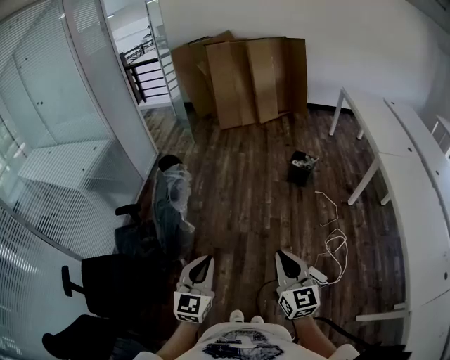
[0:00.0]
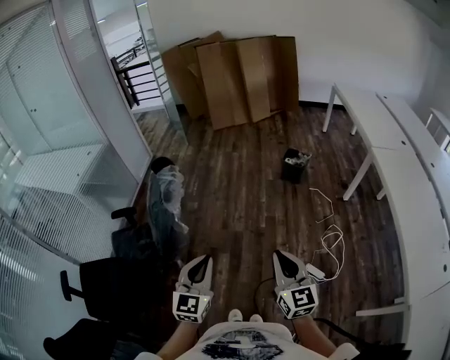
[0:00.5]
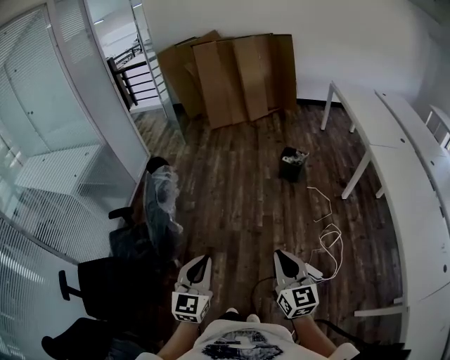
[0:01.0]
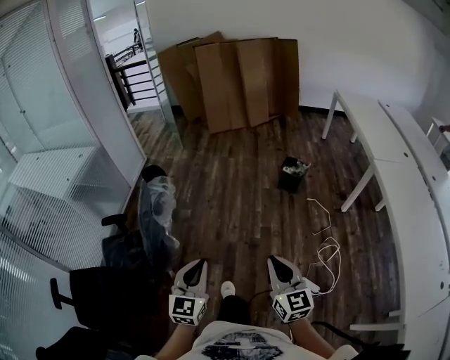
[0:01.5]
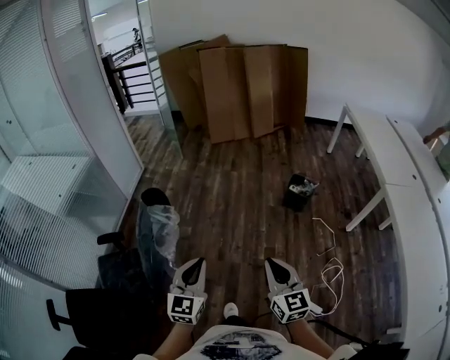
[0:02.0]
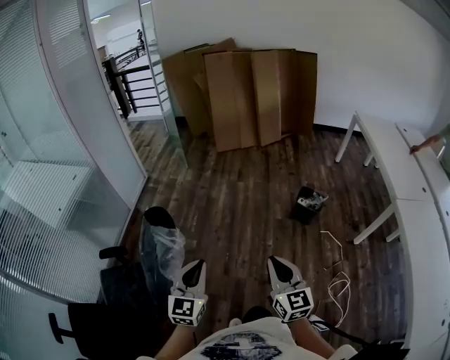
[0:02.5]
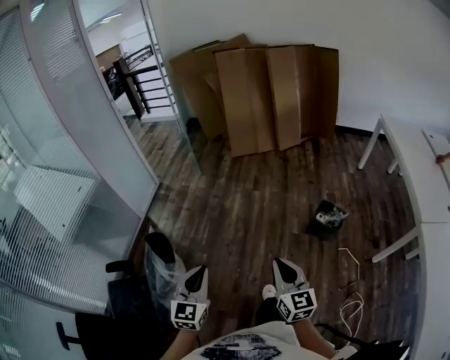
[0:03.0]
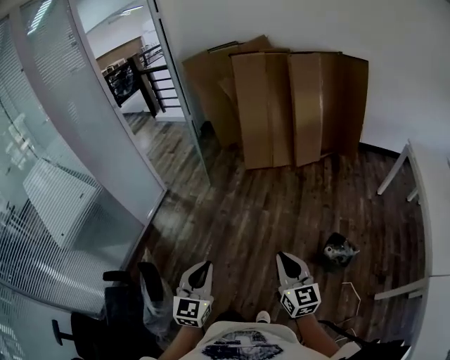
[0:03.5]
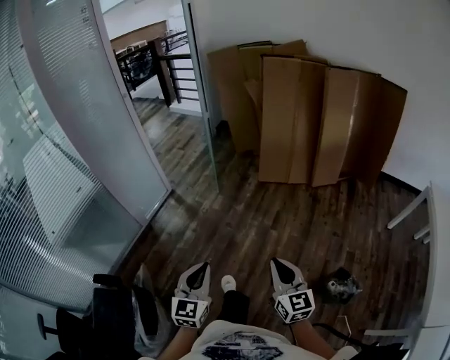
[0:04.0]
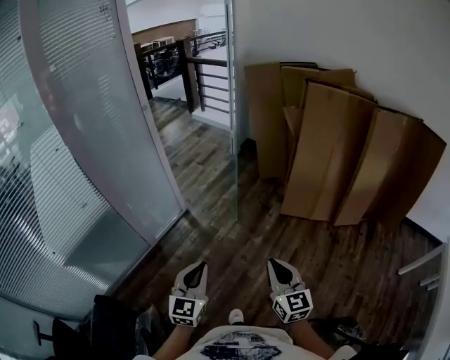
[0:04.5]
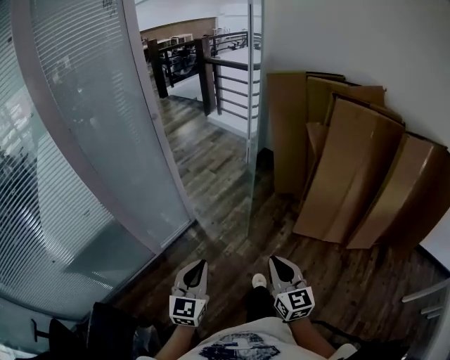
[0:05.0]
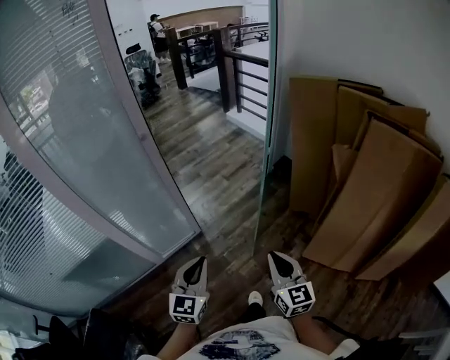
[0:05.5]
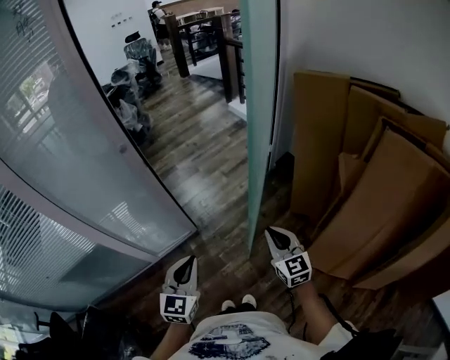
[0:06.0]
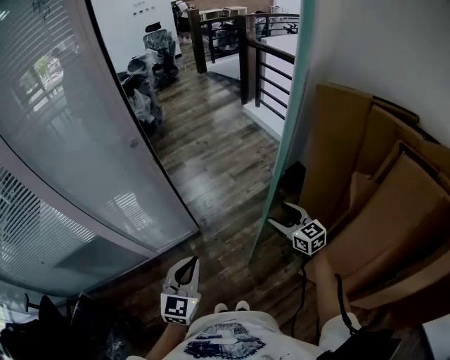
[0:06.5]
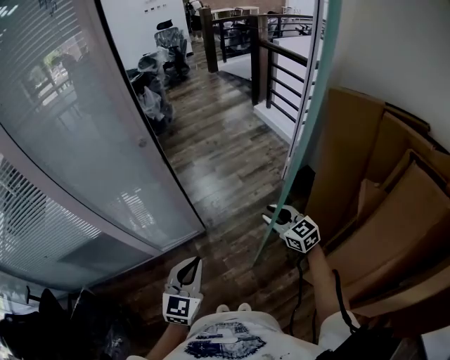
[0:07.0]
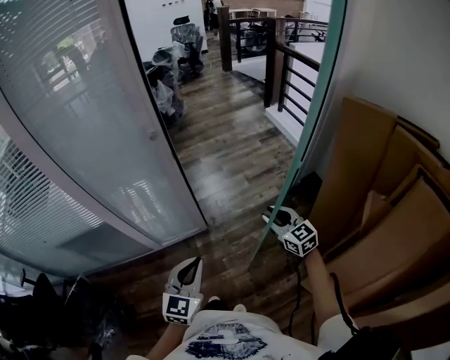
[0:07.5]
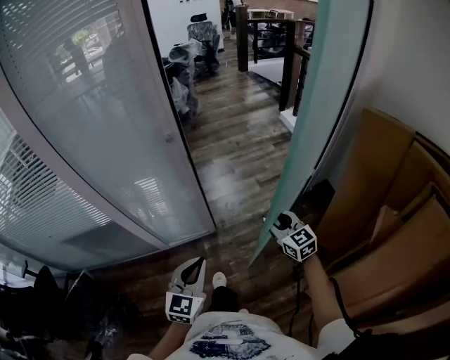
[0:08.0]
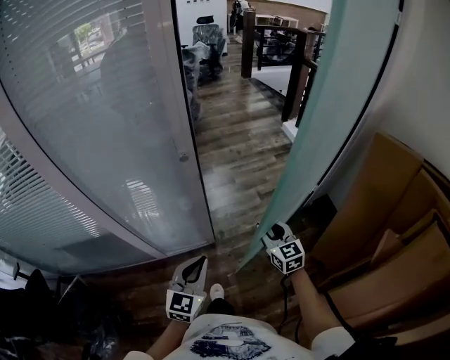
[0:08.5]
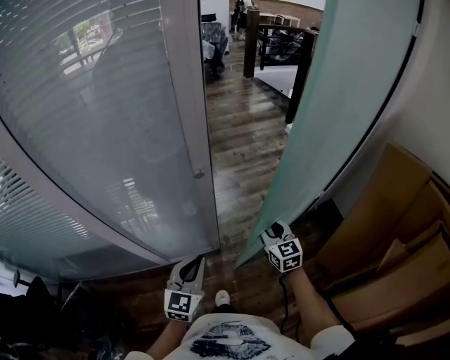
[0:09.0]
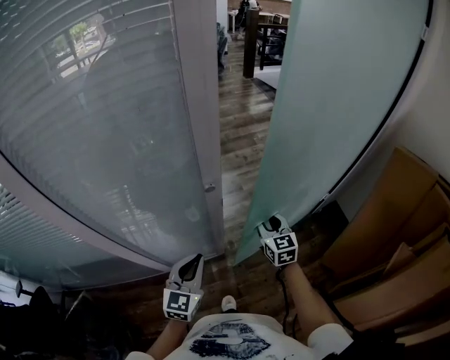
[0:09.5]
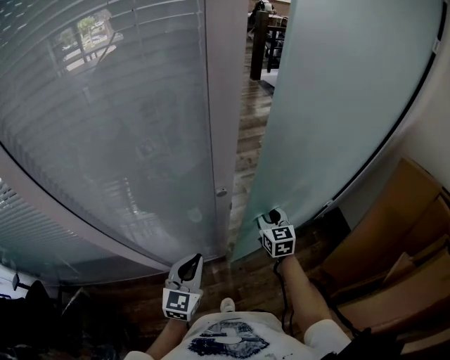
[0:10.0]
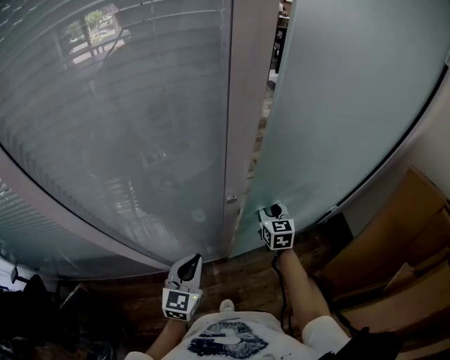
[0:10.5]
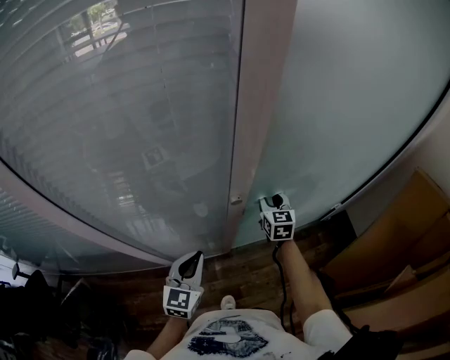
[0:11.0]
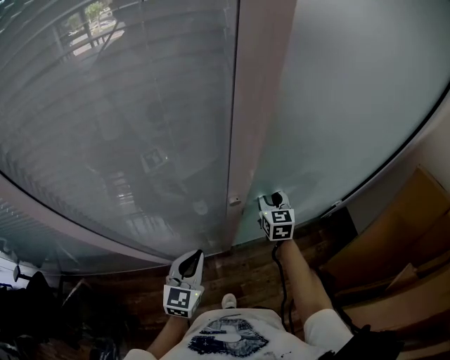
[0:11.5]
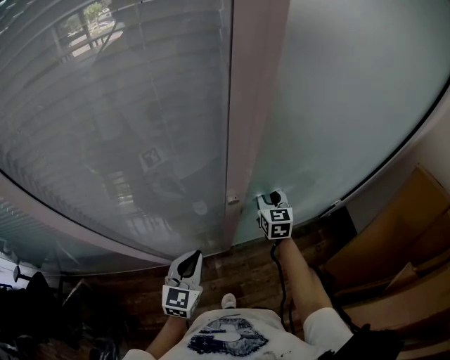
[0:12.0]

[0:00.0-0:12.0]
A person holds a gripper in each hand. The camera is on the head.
0:00.0 to 0:02.0: Both grippers move forward, approximately 25 cm.
0:02.0 to 0:04.0: The pair of grippers is taken forward, some 60 cm. The left gripper turns by roughly 20 degrees.
0:04.0 to 0:06.0: Both grippers are carried some 80 cm. The right gripper swivels approximately 30 degrees. The left gripper swivels some 30 degrees.
0:06.0 to 0:08.0: The right gripper goes approximately 20 cm forward, swivels about 30 degrees, and opens up, while the left gripper moves forward, roughly 5 cm.
0:08.0 to 0:10.0: The grippers both shift forward and to the left by about 25 cm.
0:10.0 to 0:12.0: The right gripper goes about 10 cm forward.

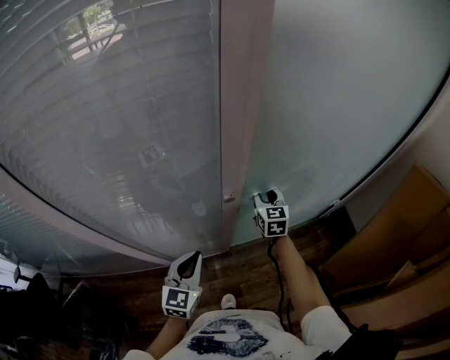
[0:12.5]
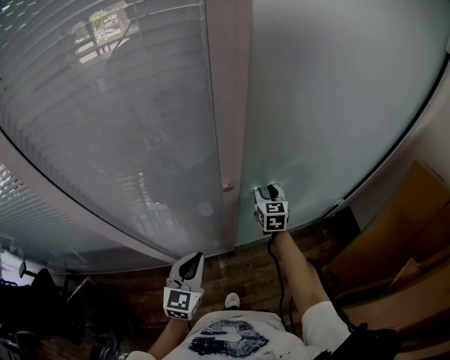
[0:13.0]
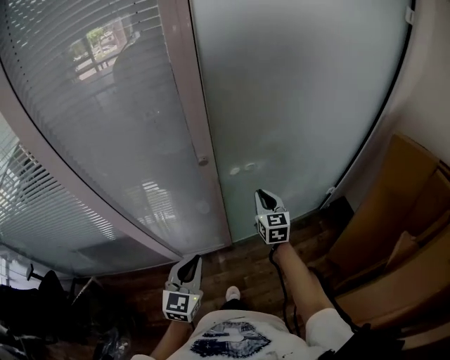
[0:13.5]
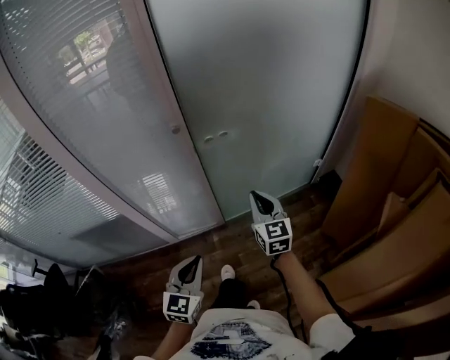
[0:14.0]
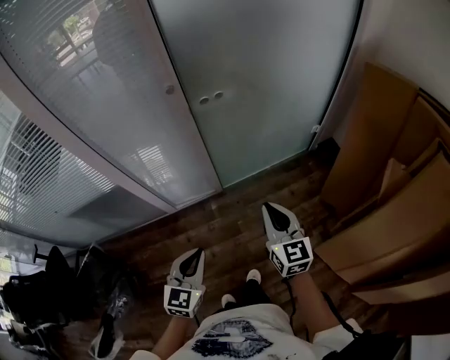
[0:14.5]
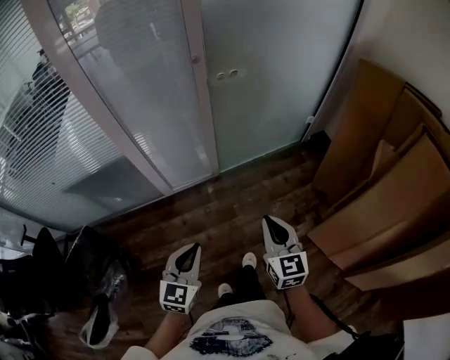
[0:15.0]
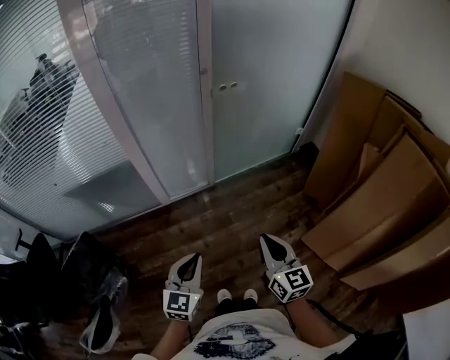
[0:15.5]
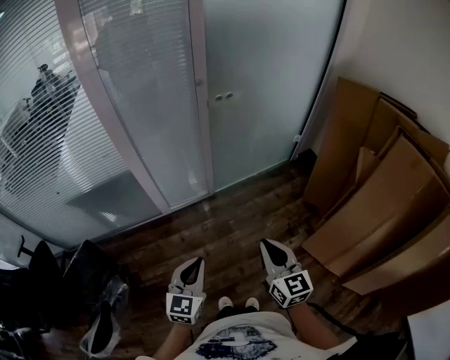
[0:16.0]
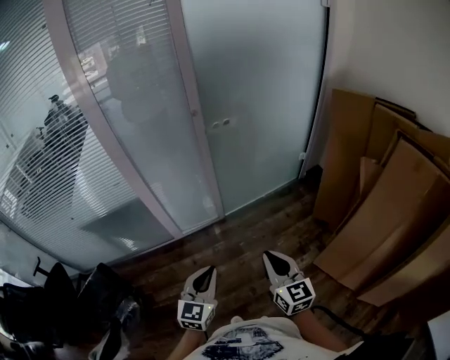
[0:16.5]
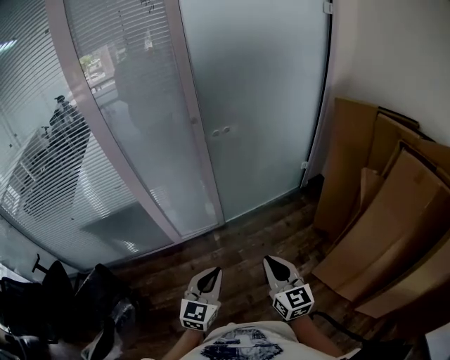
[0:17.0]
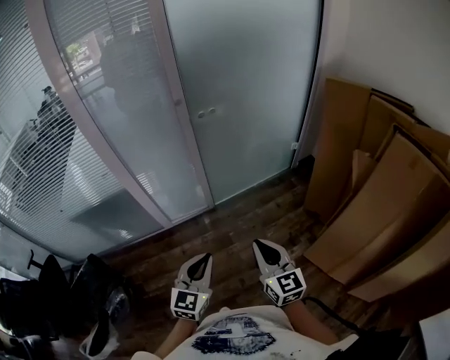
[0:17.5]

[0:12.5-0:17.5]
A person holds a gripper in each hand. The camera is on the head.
0:12.5 to 0:15.0: The pair of grippers is taken backward, some 60 cm. The right gripper closes its fingers.
0:15.0 to 0:17.5: The right gripper moves backward, roughly 5 cm. The left gripper heads to the right, covering approximately 10 cm.

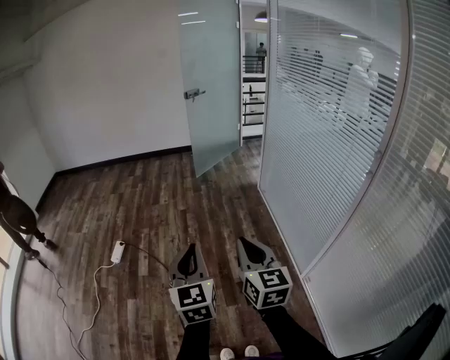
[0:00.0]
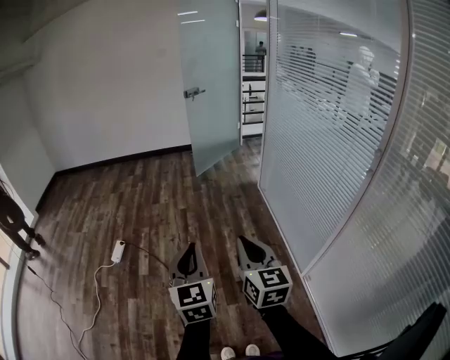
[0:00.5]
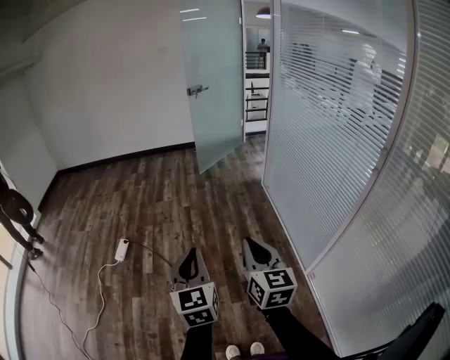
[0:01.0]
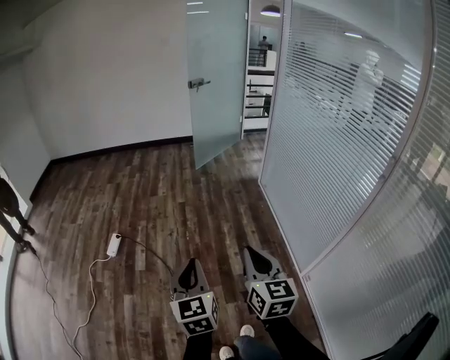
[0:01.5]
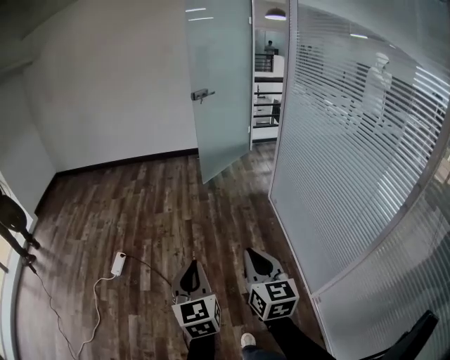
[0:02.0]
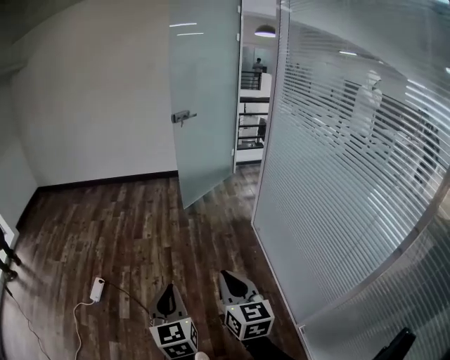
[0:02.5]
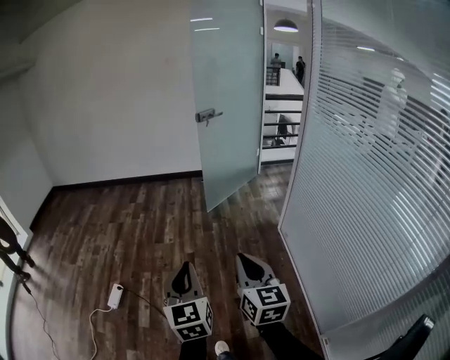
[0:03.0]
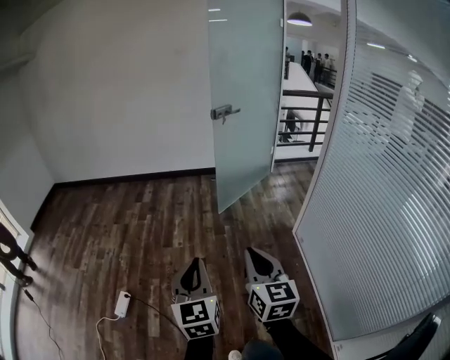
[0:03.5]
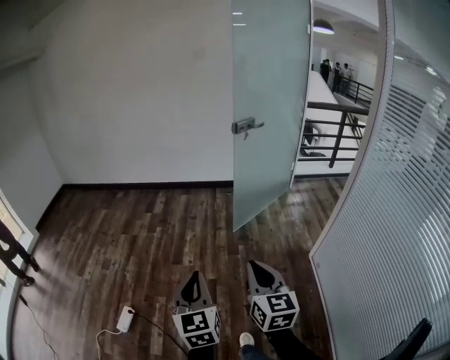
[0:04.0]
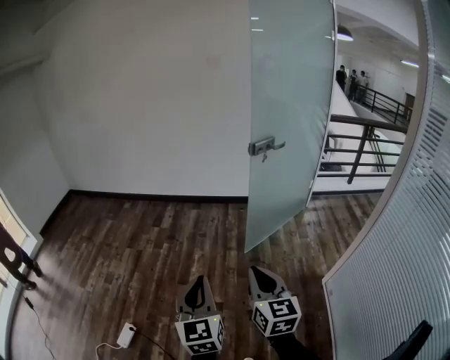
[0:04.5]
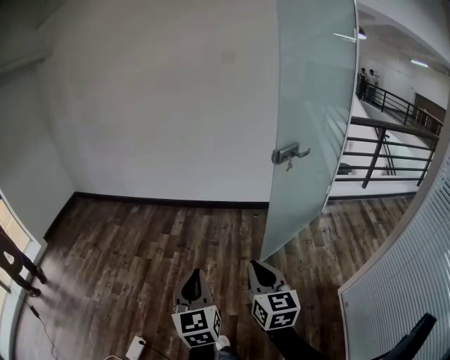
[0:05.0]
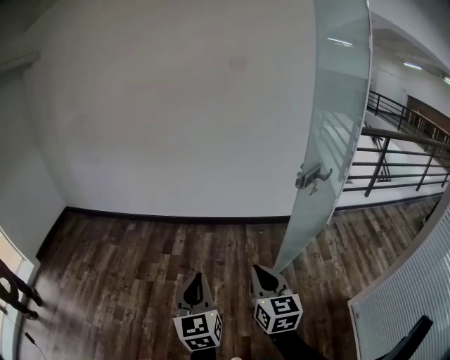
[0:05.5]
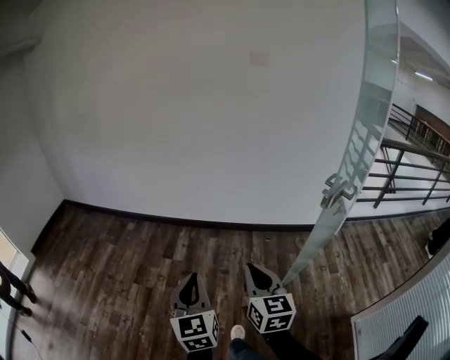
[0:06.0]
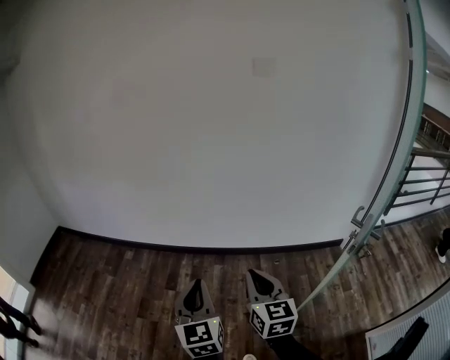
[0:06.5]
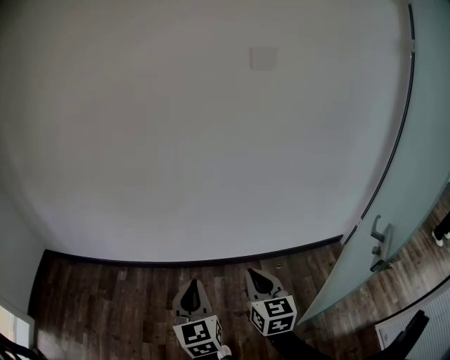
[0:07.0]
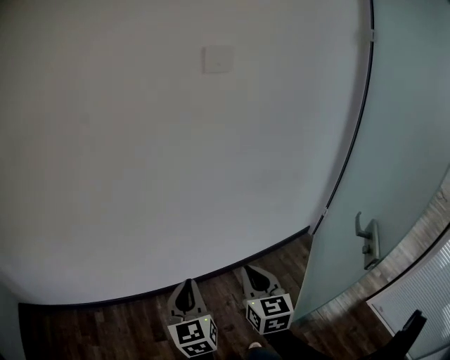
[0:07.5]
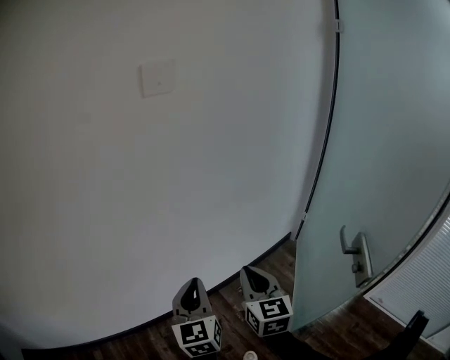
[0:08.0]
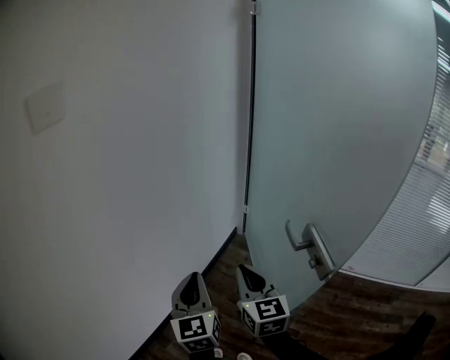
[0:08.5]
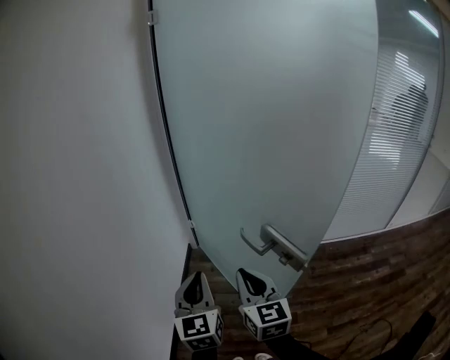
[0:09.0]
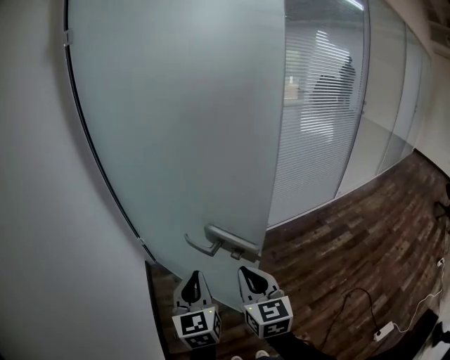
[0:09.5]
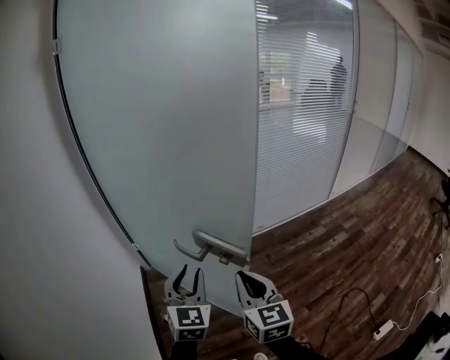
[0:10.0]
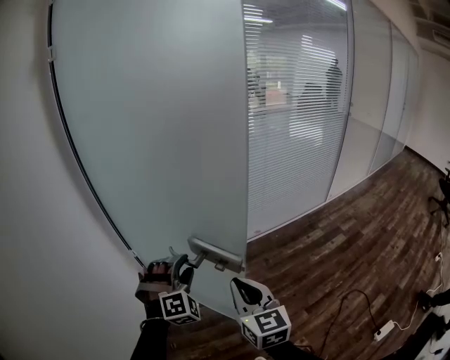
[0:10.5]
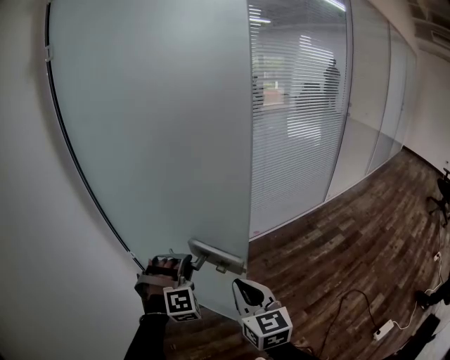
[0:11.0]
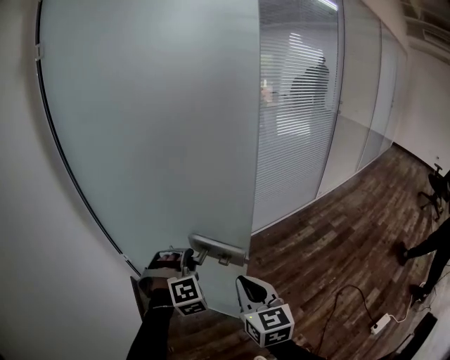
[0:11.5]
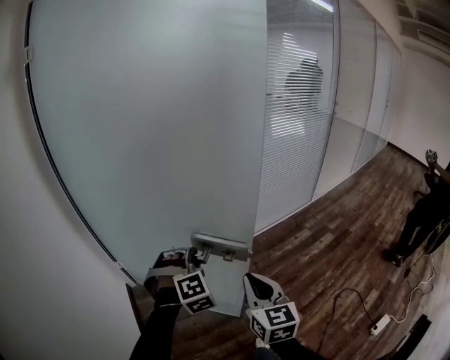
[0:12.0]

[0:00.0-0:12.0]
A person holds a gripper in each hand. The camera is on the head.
0:00.0 to 0:02.0: Both grippers move forward, some 15 cm.
0:02.0 to 0:04.0: The two grippers travel together, forward, about 60 cm.
0:04.0 to 0:06.0: Both grippers are carried forward, approximately 60 cm.
0:06.0 to 0:08.0: The pair of grippers is taken roughly 60 cm. The right gripper changes its angle by about 40 degrees; the left gripper turns by approximately 40 degrees.
0:08.0 to 0:10.0: The right gripper changes place by about 30 cm, and swivels approximately 70 degrees, while the left gripper moves approximately 40 cm, and swivels approximately 90 degrees.
0:10.0 to 0:12.0: The right gripper moves forward and to the right, roughly 5 cm; the left gripper is displaced forward and to the right by approximately 15 cm, and rolls clockwise, seen from behind, by roughly 60 degrees.
